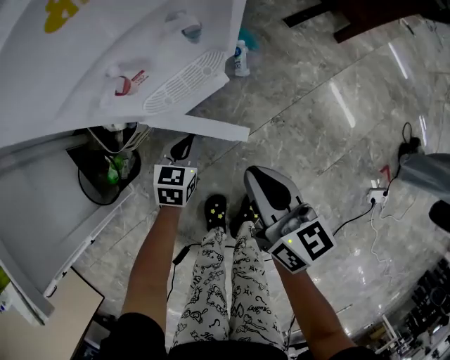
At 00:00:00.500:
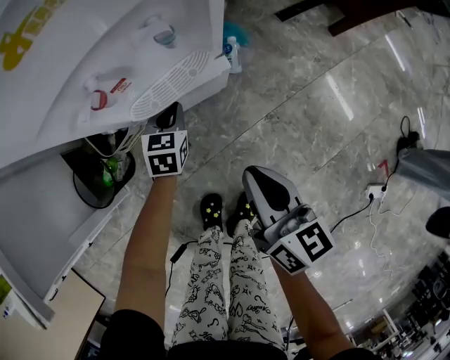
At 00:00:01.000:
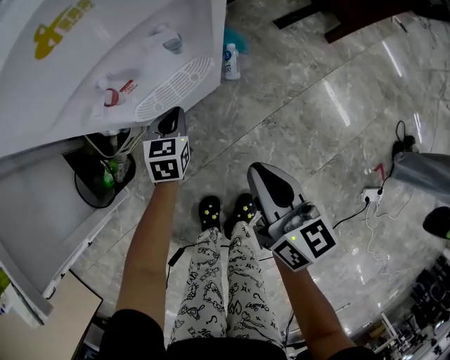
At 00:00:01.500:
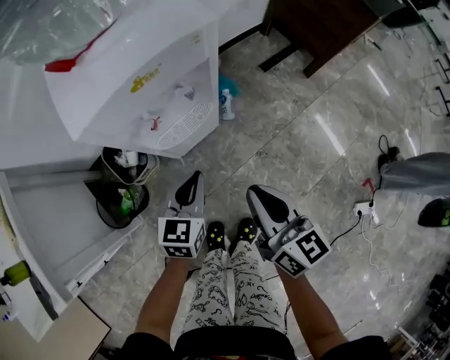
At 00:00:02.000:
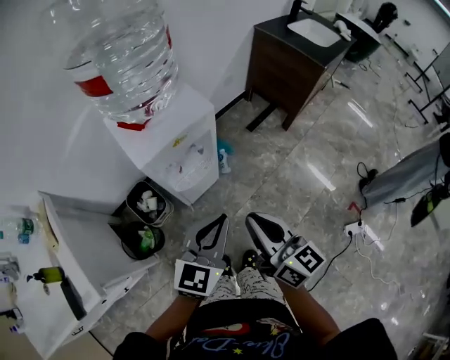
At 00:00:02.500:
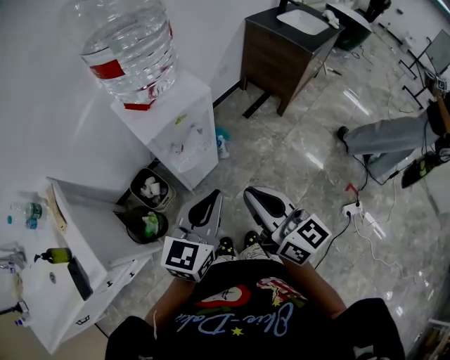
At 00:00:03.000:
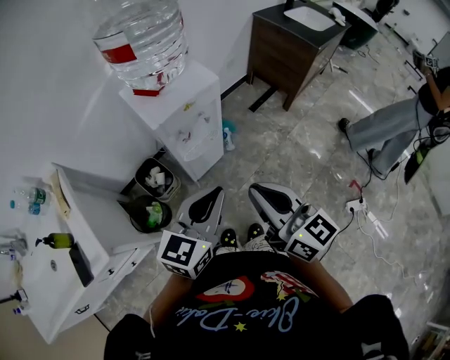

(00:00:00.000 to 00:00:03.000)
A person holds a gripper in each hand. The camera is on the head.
00:00:00.000 - 00:00:01.500: The right gripper moves upward, approximately 15 cm, while the left gripper travels upward by approximately 25 cm.
00:00:01.500 - 00:00:03.000: Both grippers move upward and backward, about 35 cm. The left gripper changes its angle by approximately 30 degrees.

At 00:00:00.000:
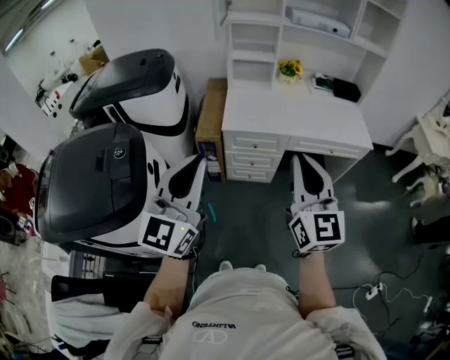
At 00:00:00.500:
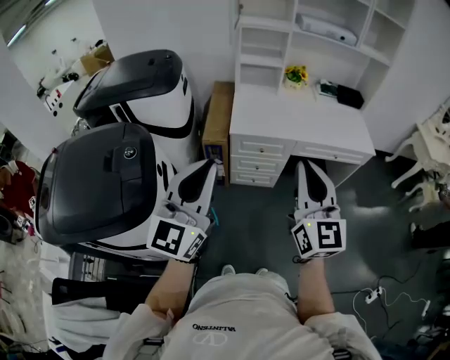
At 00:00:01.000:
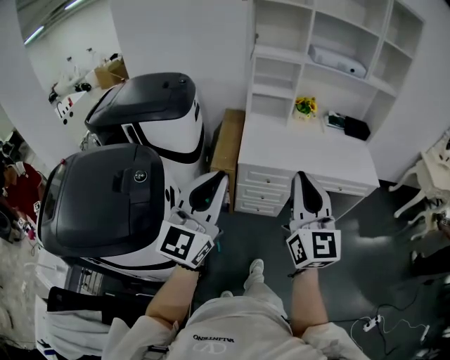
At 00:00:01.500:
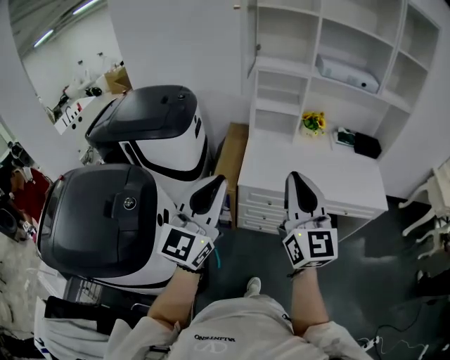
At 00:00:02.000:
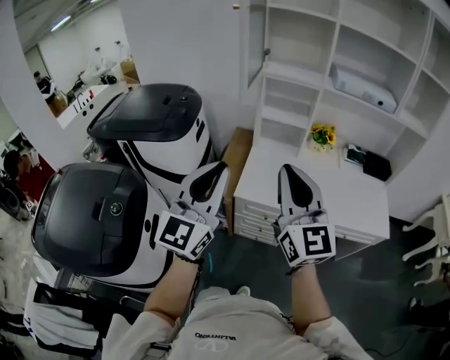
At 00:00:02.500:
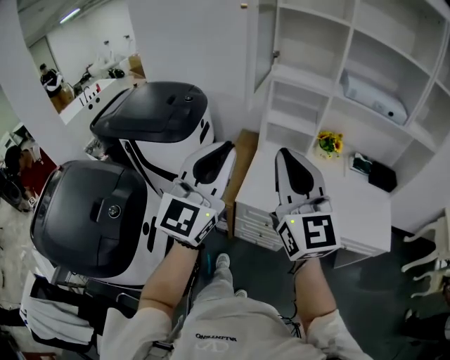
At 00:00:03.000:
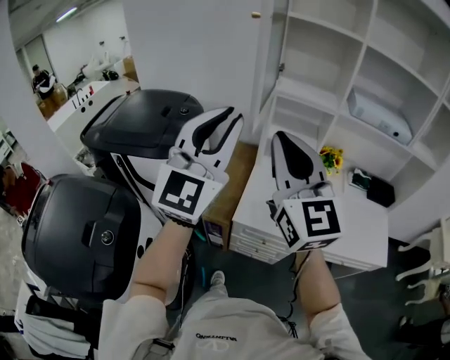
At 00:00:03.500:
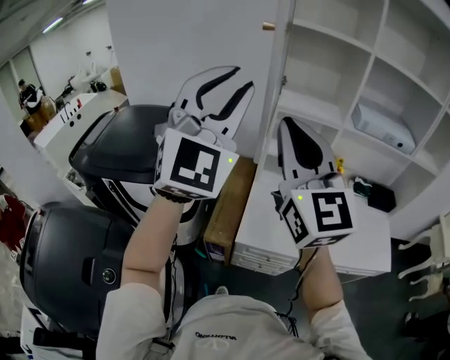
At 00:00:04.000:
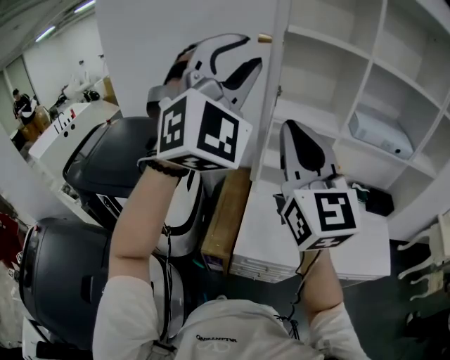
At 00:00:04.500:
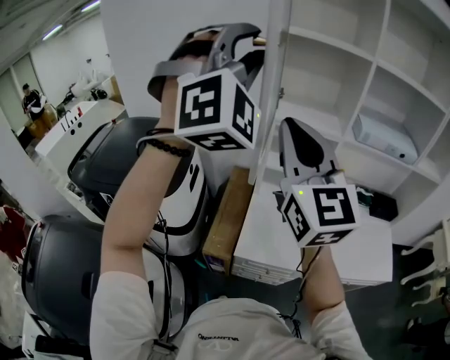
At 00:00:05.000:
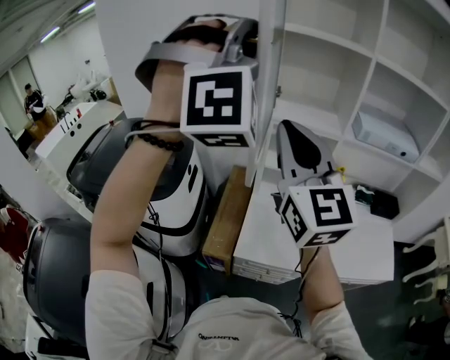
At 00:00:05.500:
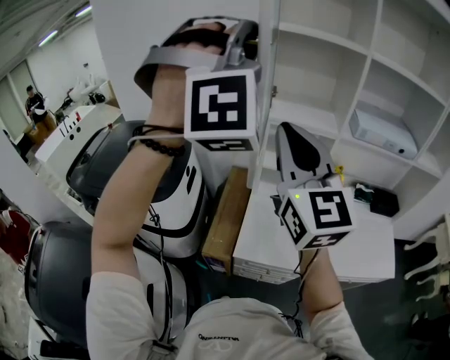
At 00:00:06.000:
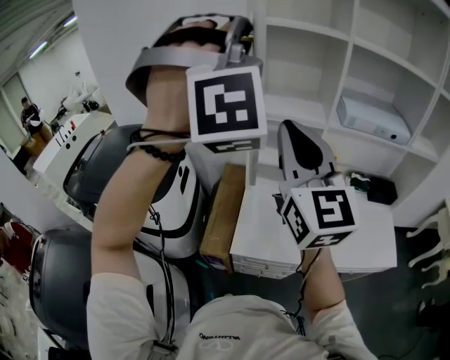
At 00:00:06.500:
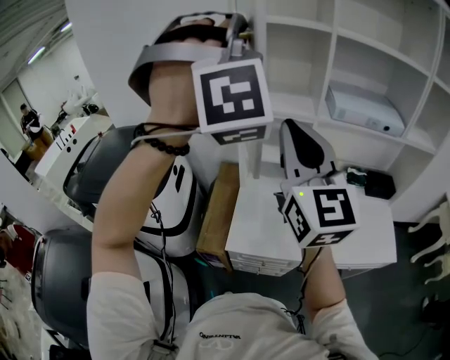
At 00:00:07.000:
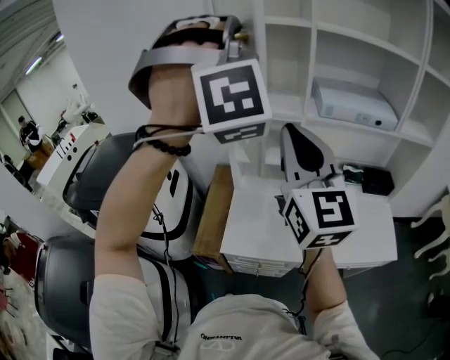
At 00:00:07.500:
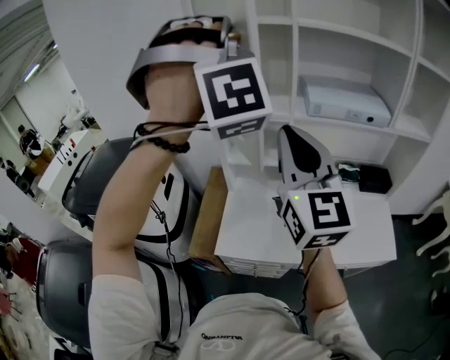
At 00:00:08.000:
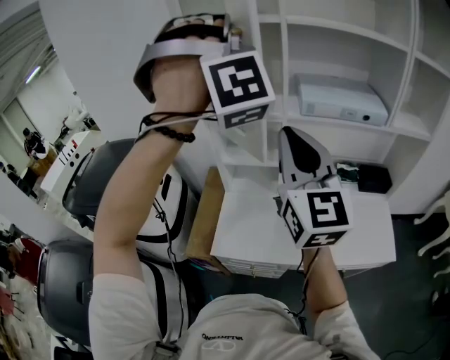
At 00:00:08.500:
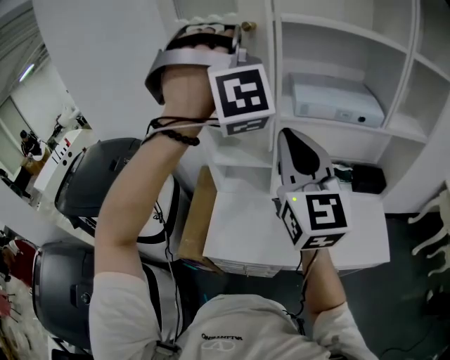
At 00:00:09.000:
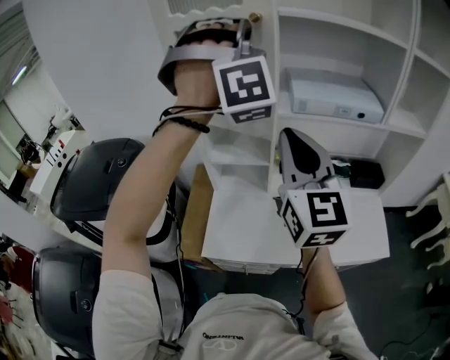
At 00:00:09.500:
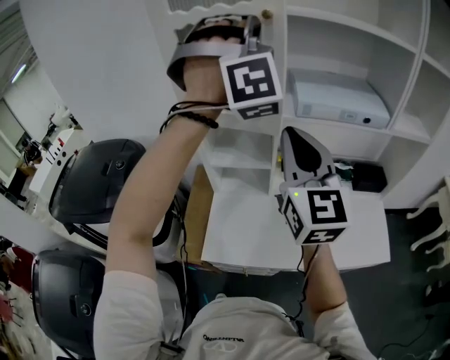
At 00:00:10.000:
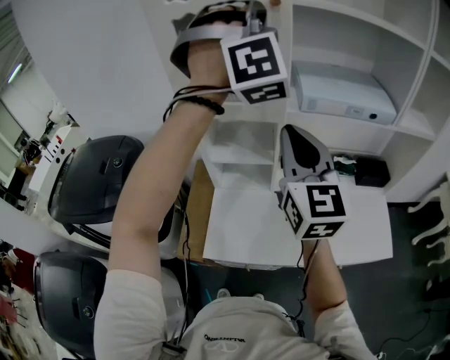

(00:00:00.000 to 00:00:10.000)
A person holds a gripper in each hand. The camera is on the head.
00:00:00.000 - 00:00:02.000: The grippers both shift forward by roughly 25 cm.
00:00:02.000 - 00:00:04.000: Both grippers move forward and upward, some 35 cm. The left gripper rolls clockwise, seen from behind, by about 60 degrees, and opens its fingers.
00:00:04.000 - 00:00:06.000: Both grippers travel together to the right, about 10 cm. The left gripper swivels approximately 40 degrees.
00:00:06.000 - 00:00:08.000: Both grippers travel together to the right, some 15 cm.
00:00:08.000 - 00:00:10.000: The right gripper goes roughly 10 cm forward and downward. Meanwhile the left gripper shifts some 15 cm forward and to the right, and swivels roughly 30 degrees.

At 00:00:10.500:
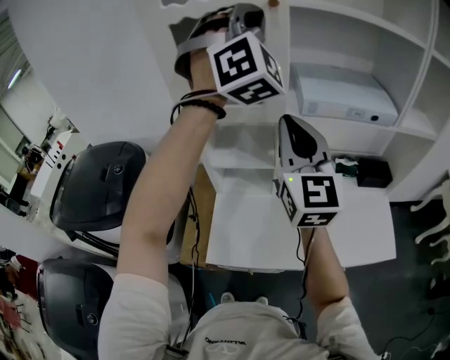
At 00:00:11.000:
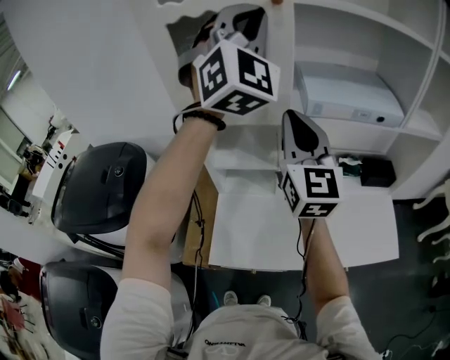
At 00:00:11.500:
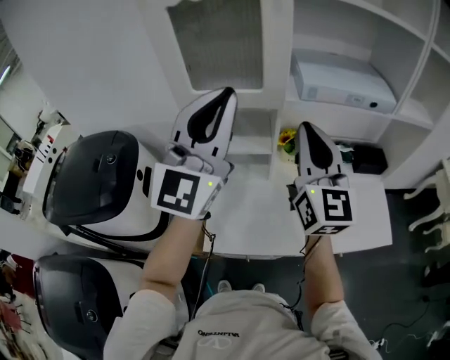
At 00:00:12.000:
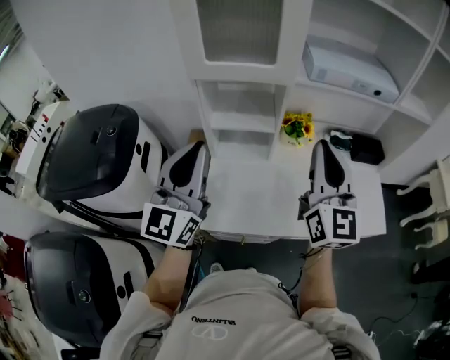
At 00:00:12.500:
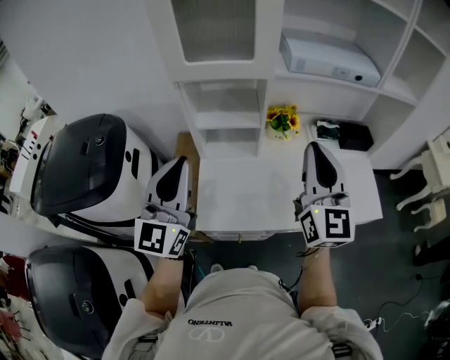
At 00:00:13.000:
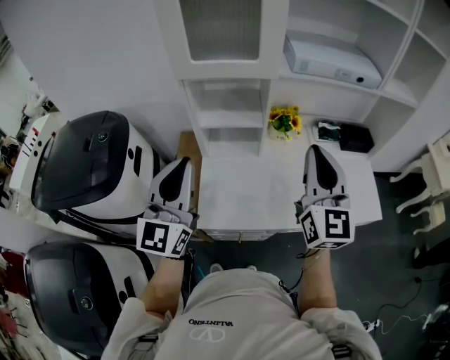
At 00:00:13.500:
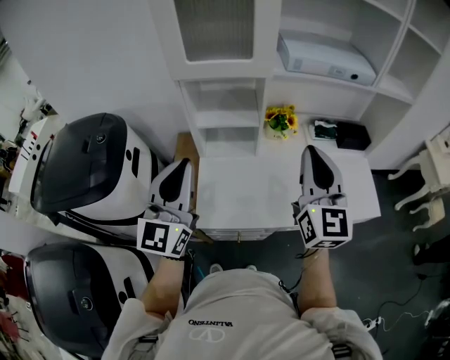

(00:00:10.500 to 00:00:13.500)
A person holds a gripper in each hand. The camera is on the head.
00:00:10.500 - 00:00:12.000: The left gripper heads downward, backward and to the left, covering roughly 40 cm, and twists about 70 degrees counterclockwise, seen from behind, while the right gripper heads backward, downward and to the right, covering about 15 cm.
00:00:12.000 - 00:00:13.500: The grippers make only small movements.

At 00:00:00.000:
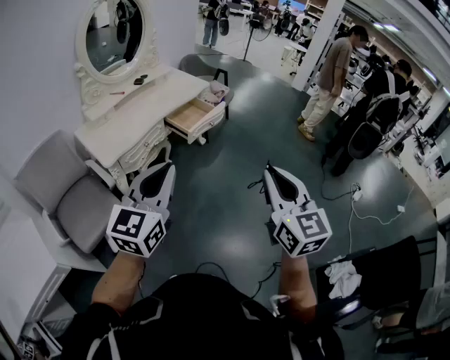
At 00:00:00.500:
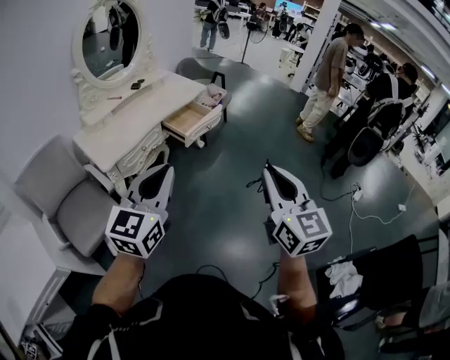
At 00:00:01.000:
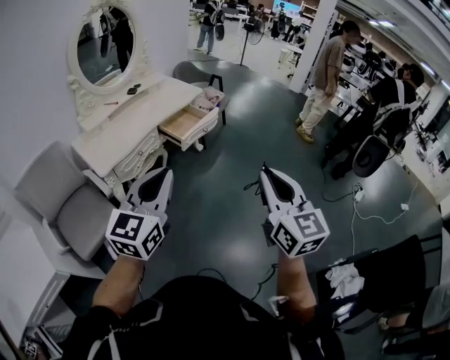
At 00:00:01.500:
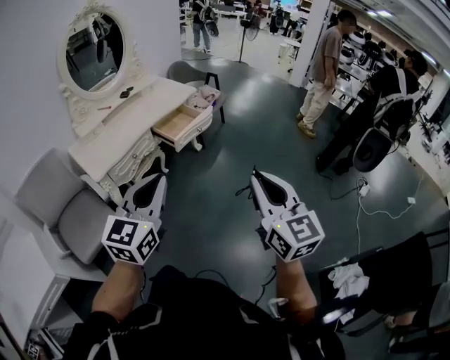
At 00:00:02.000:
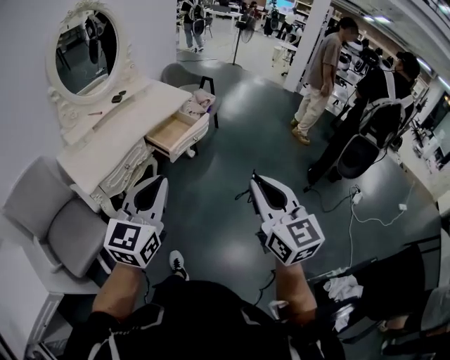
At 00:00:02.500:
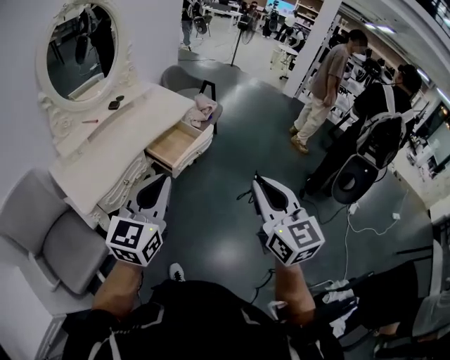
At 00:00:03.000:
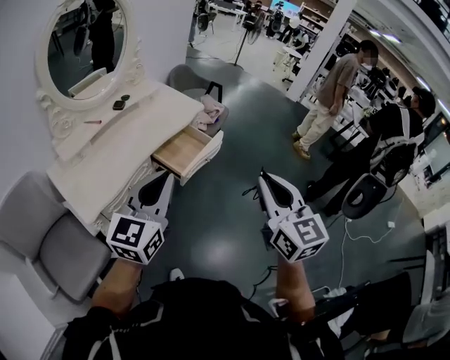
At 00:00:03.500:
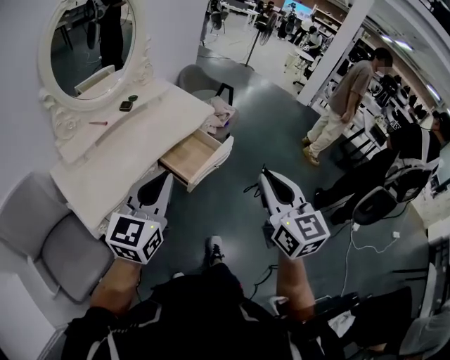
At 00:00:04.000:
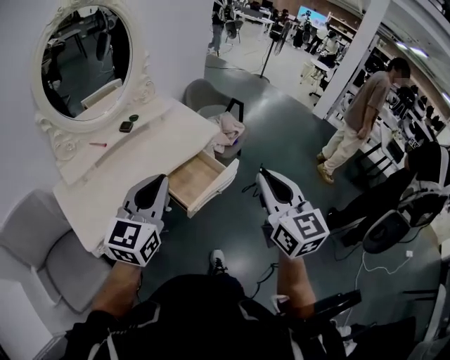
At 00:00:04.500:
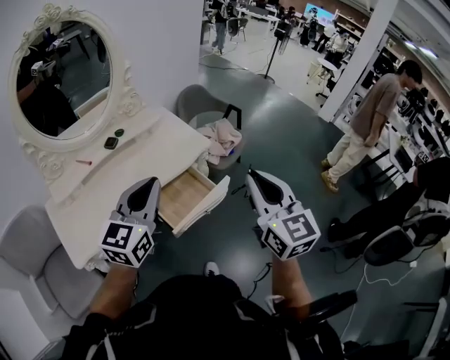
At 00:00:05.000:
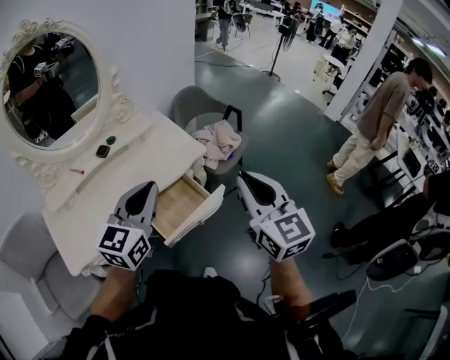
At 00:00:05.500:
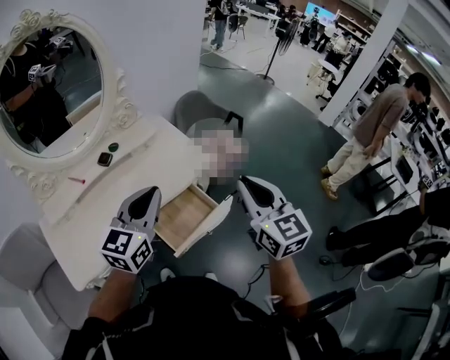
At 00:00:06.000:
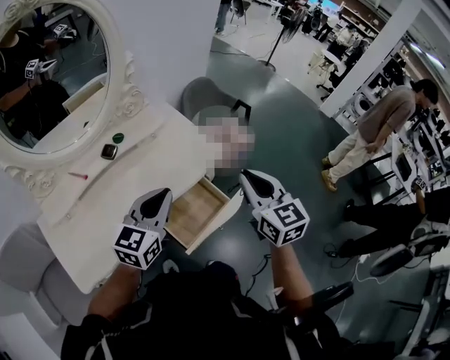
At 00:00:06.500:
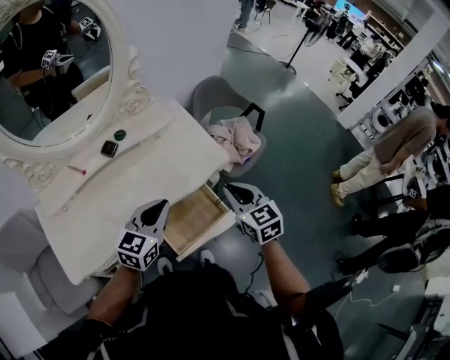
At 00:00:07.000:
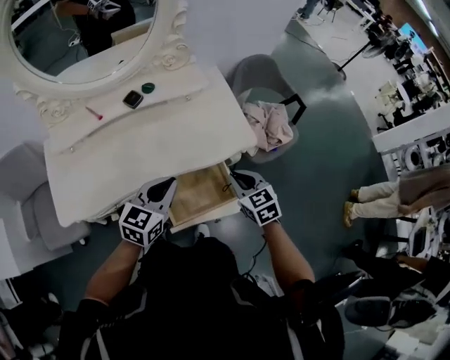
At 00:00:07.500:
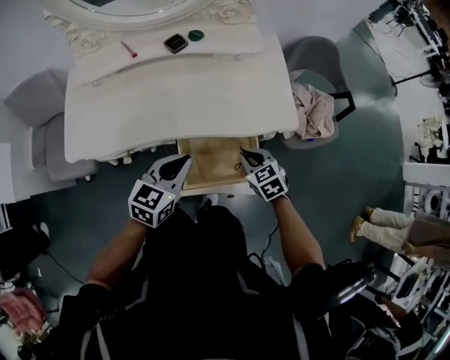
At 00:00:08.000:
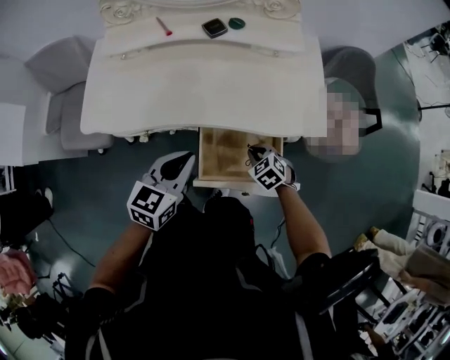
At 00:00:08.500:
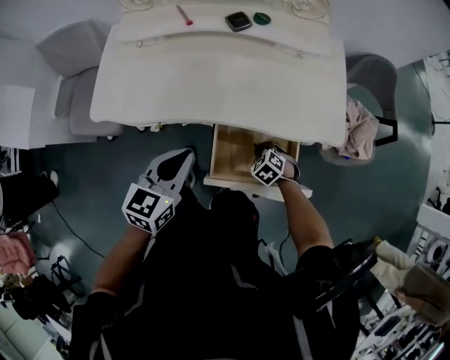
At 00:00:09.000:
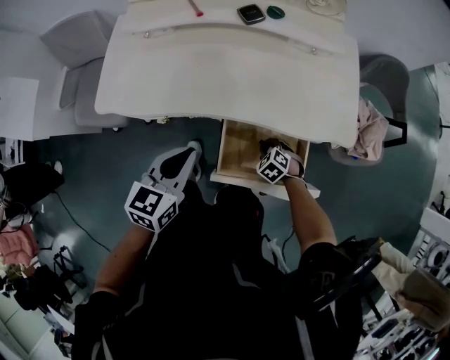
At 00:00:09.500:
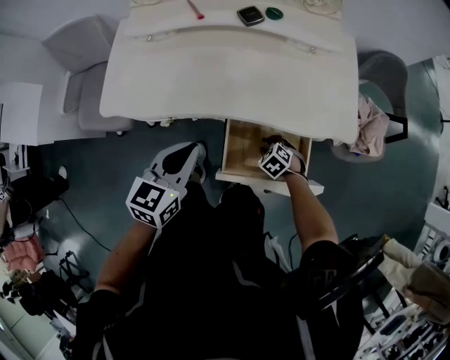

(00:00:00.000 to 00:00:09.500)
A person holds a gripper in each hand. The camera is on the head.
00:00:00.000 - 00:00:02.000: Both grippers travel together forward and to the right, approximately 15 cm.
00:00:02.000 - 00:00:04.000: The two grippers travel together, forward, some 40 cm.
00:00:04.000 - 00:00:05.500: Both grippers travel together forward, roughly 25 cm.
00:00:05.500 - 00:00:07.500: The right gripper goes roughly 40 cm downward, and angles its fingers downward, by about 40 degrees. Meanwhile the left gripper travels downward by roughly 25 cm, and changes its angle by approximately 30 degrees.
00:00:07.500 - 00:00:09.500: The right gripper travels downward and to the left by roughly 20 cm, changes its angle by about 30 degrees, and opens its fingers; the left gripper shifts about 10 cm to the left.
